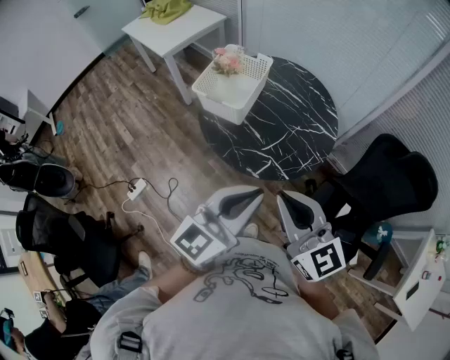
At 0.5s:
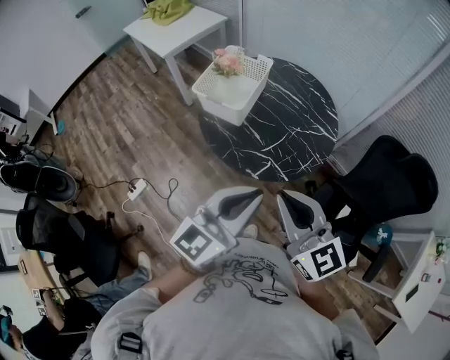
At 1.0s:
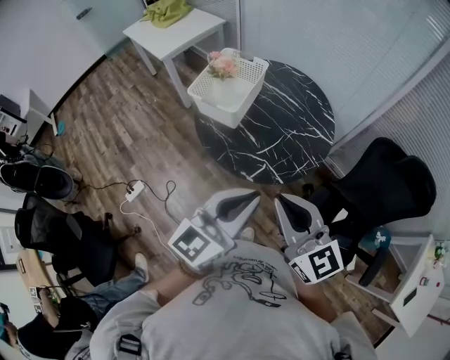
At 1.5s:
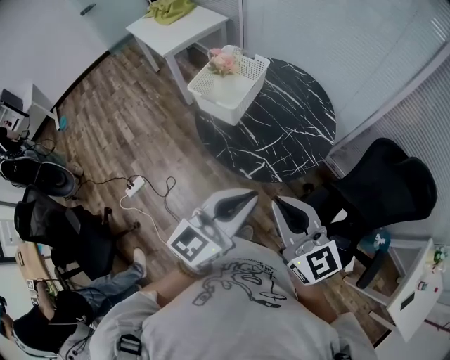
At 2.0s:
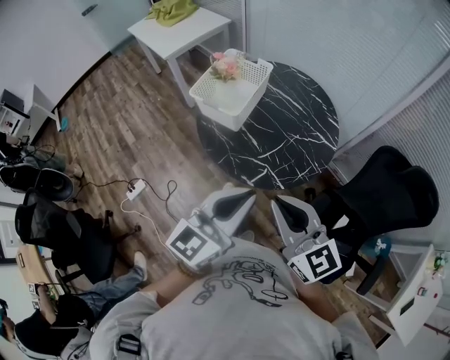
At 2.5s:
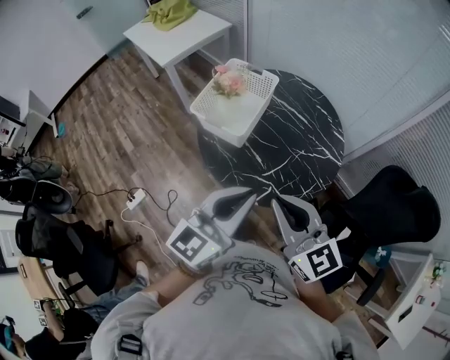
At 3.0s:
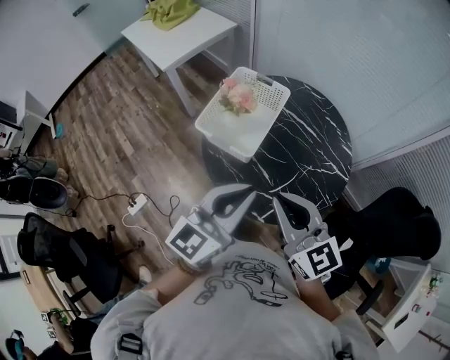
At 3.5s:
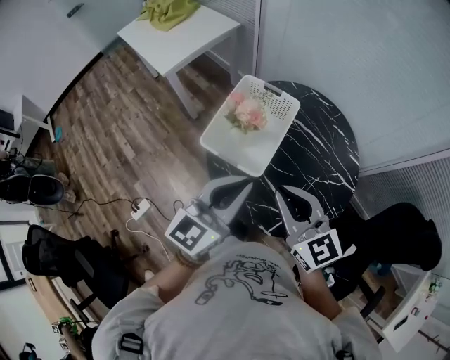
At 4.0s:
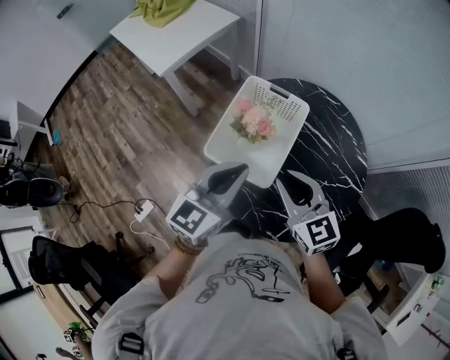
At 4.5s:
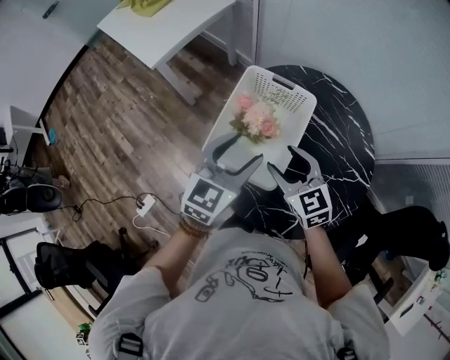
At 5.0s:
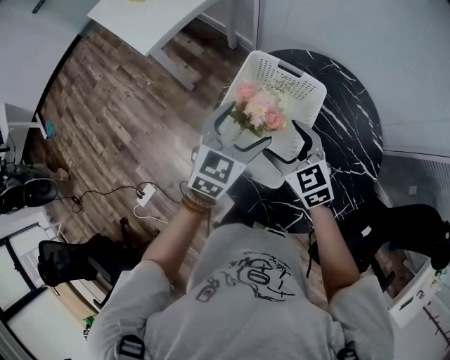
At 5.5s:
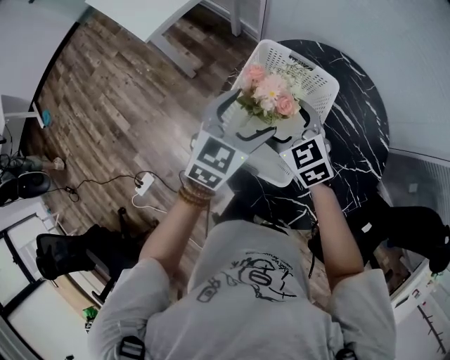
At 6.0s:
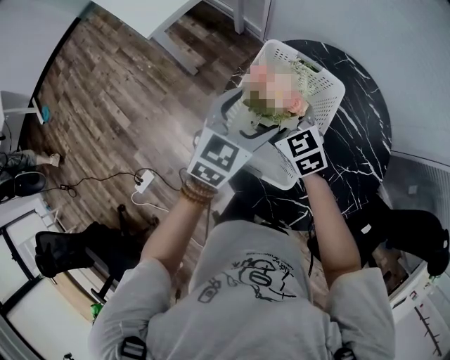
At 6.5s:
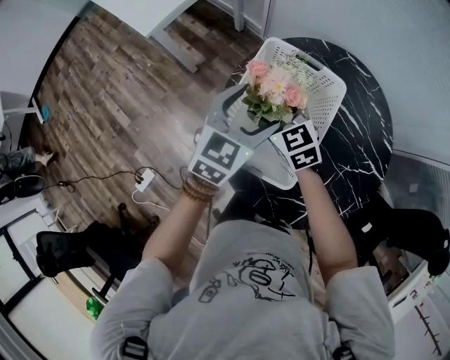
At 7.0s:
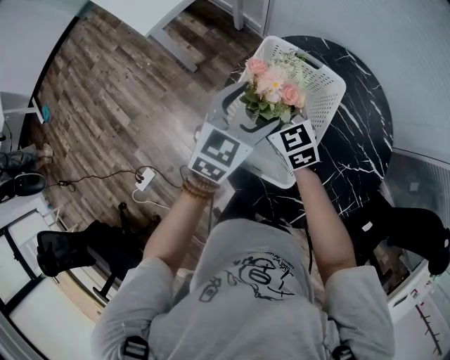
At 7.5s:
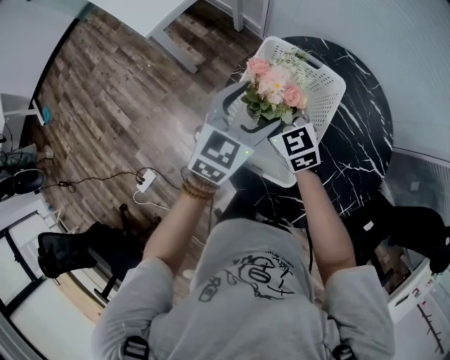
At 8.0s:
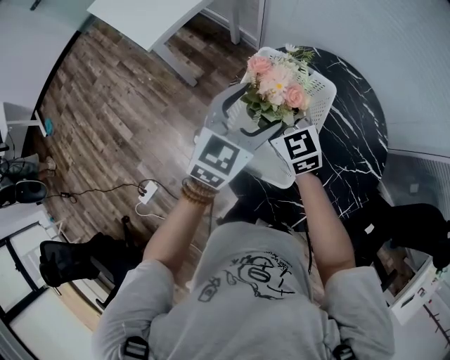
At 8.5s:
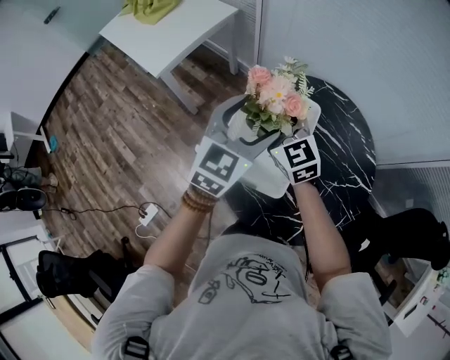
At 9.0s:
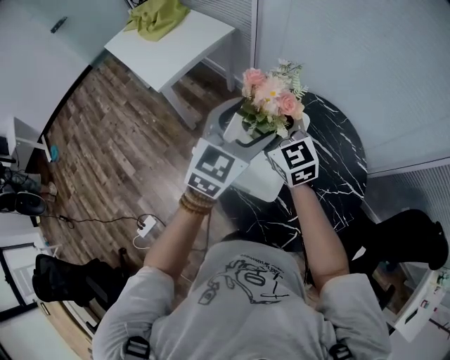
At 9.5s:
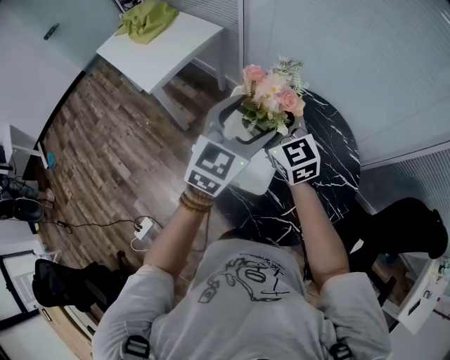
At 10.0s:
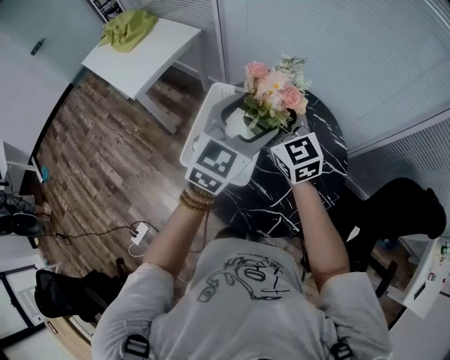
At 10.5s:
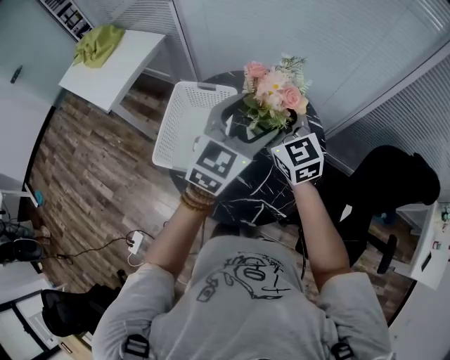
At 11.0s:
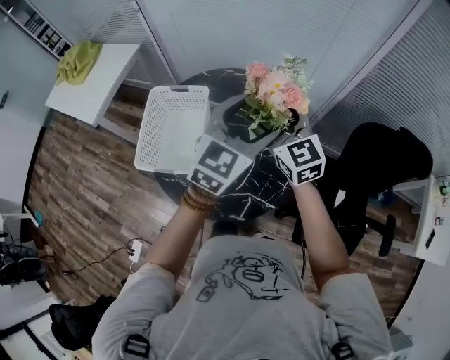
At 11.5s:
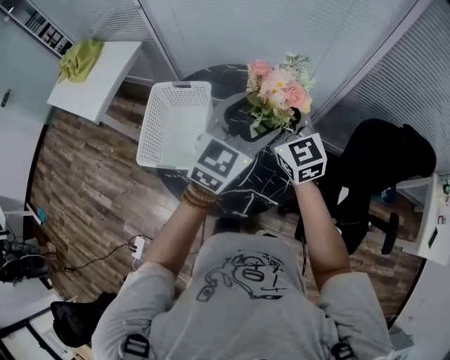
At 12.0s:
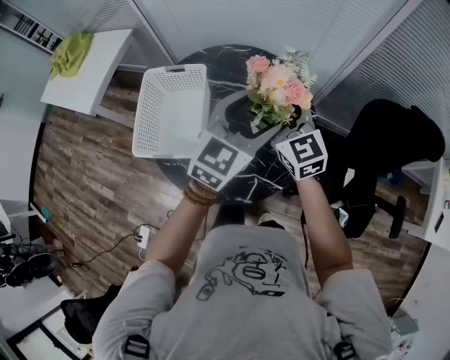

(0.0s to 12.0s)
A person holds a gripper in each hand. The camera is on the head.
0.0s - 2.0s: There are only small adjustments of the grippers.
2.0s - 4.0s: Both grippers are carried forward and to the left, approximately 40 cm.
4.0s - 6.0s: The right gripper moves forward, downward and to the left, some 30 cm, and opens its fingers. Meanwhile the left gripper heads forward and downward, covering roughly 25 cm, and opens up.
6.0s - 8.0s: The two grippers go some 5 cm upward.
8.0s - 10.0s: The grippers both shift upward, to the right and backward by some 25 cm.
10.0s - 12.0s: The grippers both shift to the right by some 25 cm.

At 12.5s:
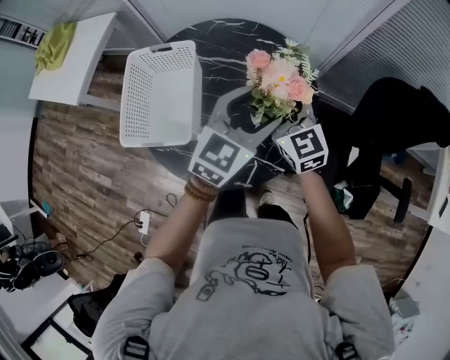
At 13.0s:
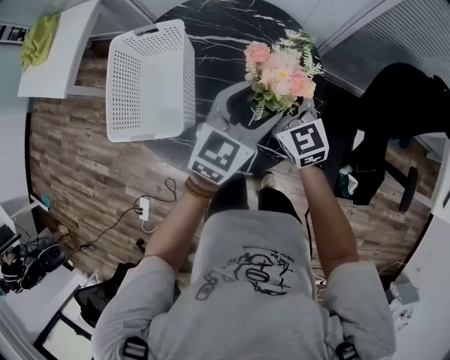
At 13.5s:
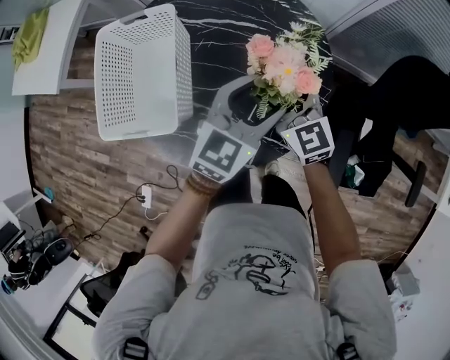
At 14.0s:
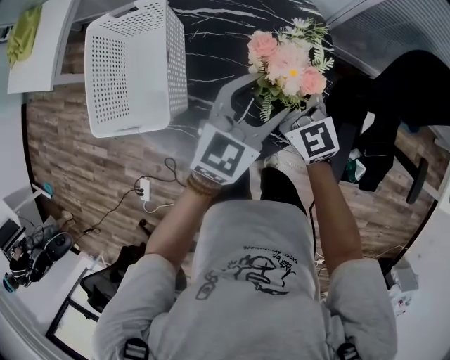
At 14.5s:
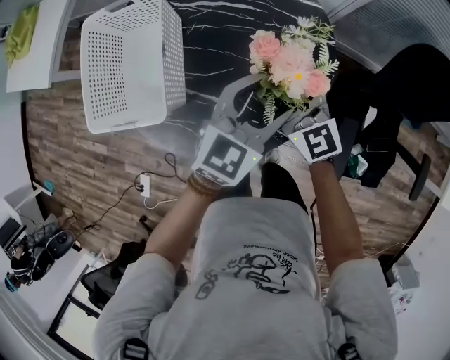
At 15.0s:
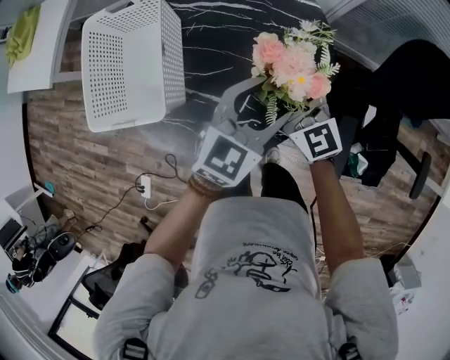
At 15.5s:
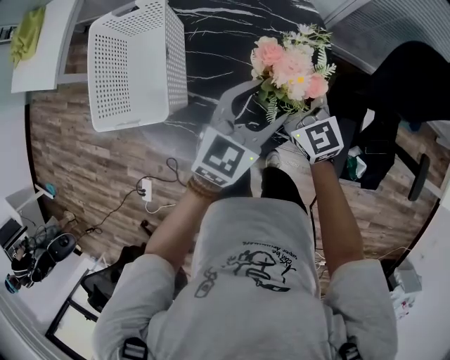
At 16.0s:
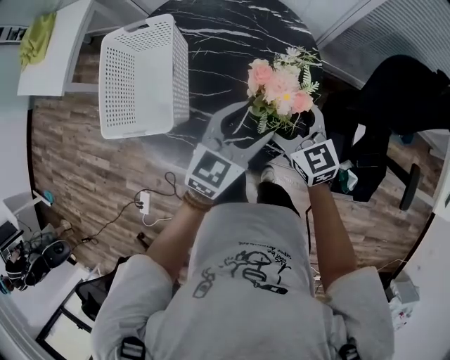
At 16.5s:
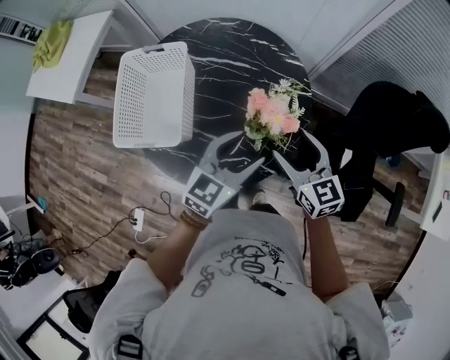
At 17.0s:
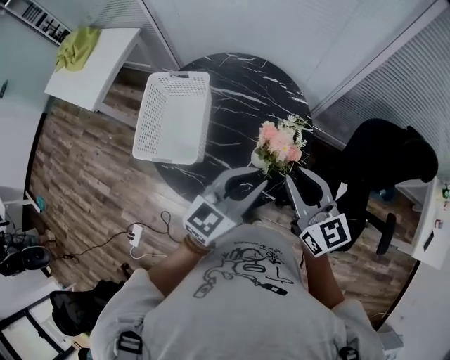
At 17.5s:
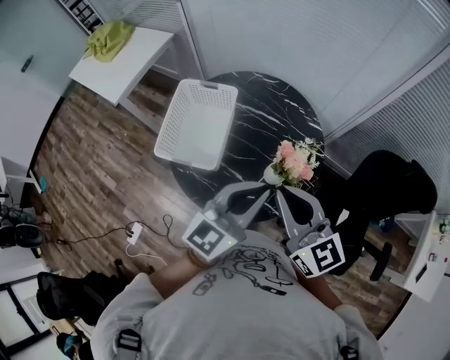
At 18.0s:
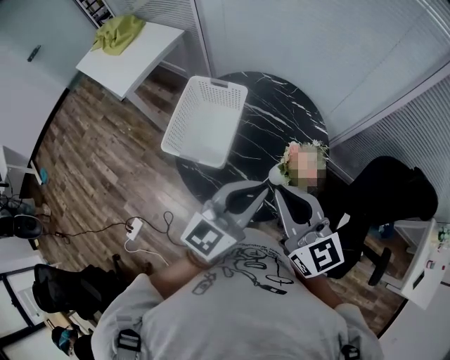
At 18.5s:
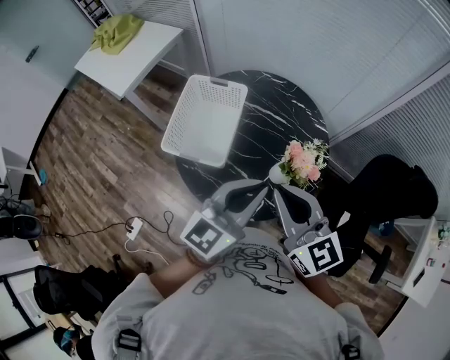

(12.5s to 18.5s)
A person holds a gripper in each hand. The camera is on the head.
12.5s - 14.5s: The two grippers go roughly 15 cm downward.
14.5s - 16.5s: The right gripper goes about 15 cm upward, to the right and backward. Meanwhile the left gripper is displaced upward and backward by roughly 10 cm.
16.5s - 18.5s: The grippers both shift upward and to the left by roughly 25 cm. The left gripper changes its angle by some 20 degrees, and closes up; the right gripper swivels about 20 degrees, and closes up.

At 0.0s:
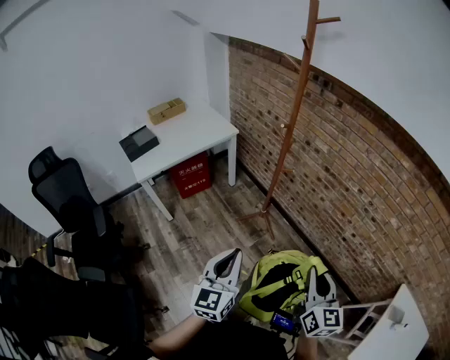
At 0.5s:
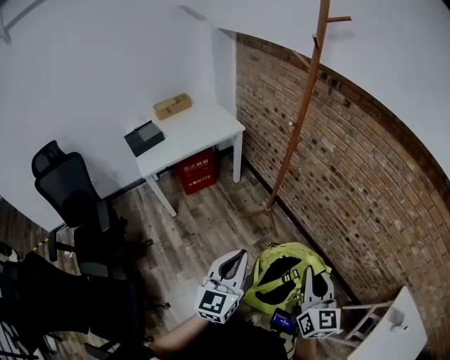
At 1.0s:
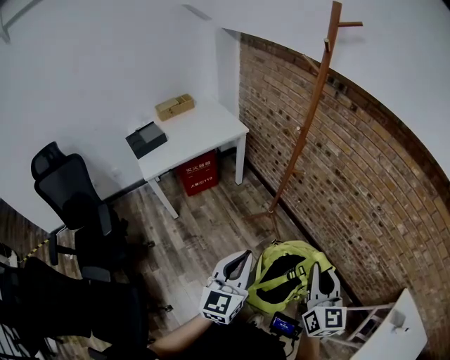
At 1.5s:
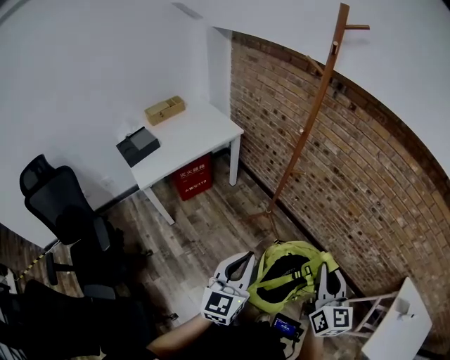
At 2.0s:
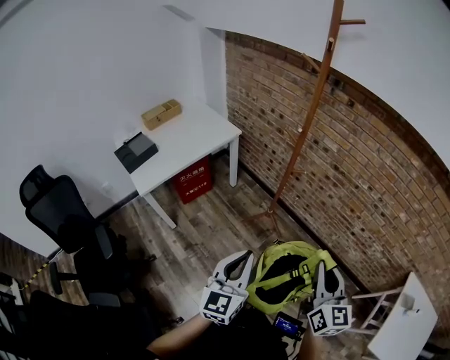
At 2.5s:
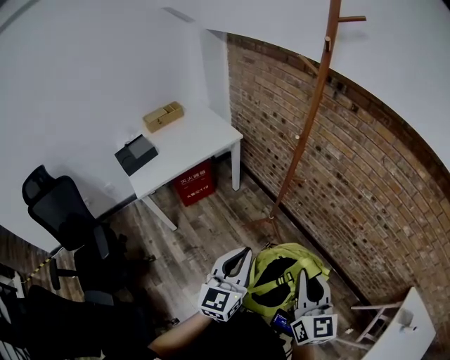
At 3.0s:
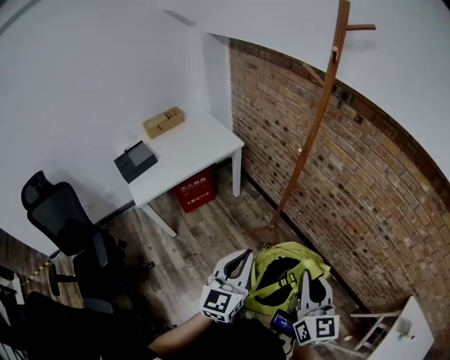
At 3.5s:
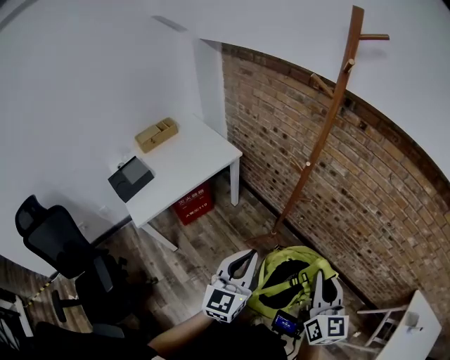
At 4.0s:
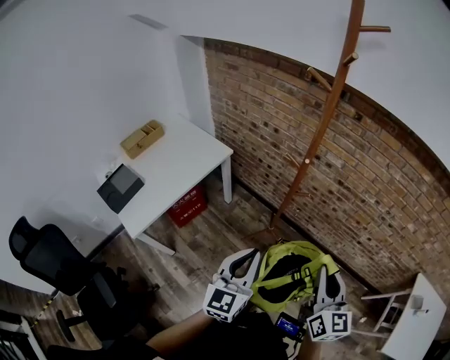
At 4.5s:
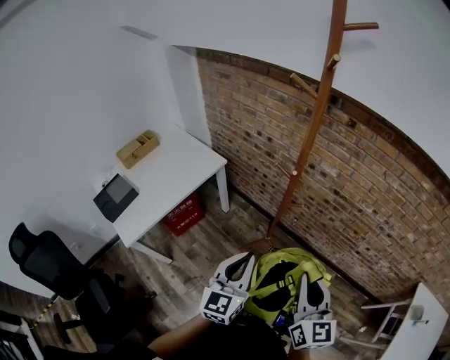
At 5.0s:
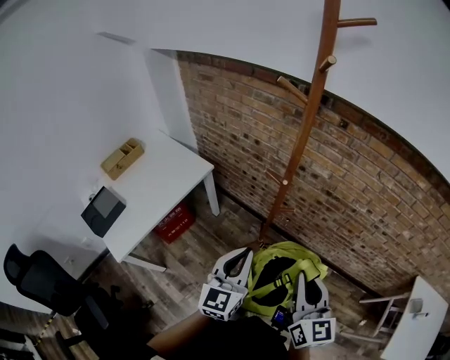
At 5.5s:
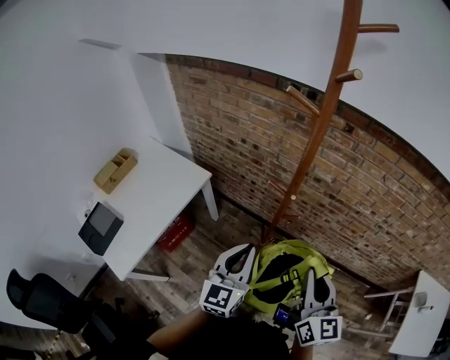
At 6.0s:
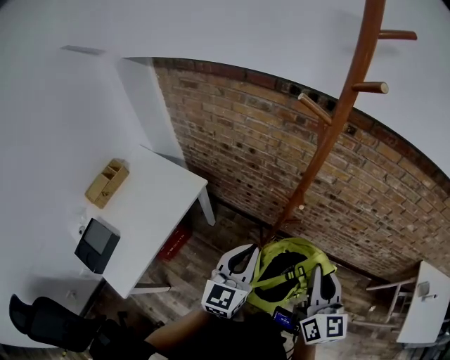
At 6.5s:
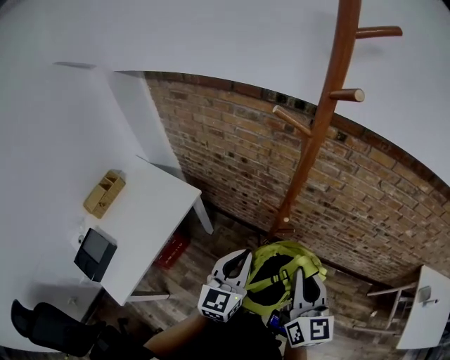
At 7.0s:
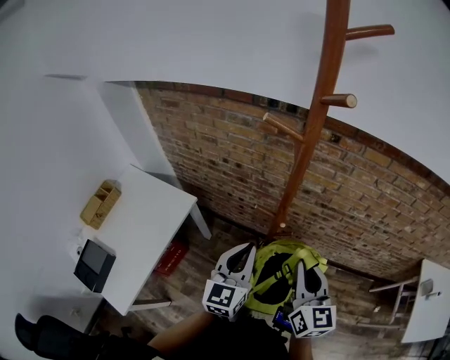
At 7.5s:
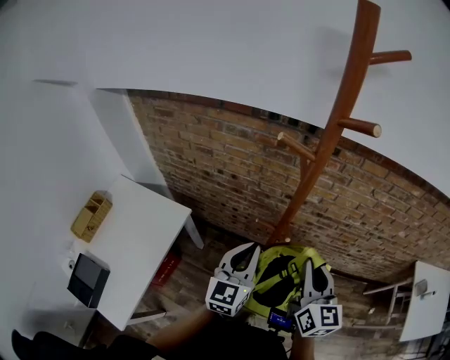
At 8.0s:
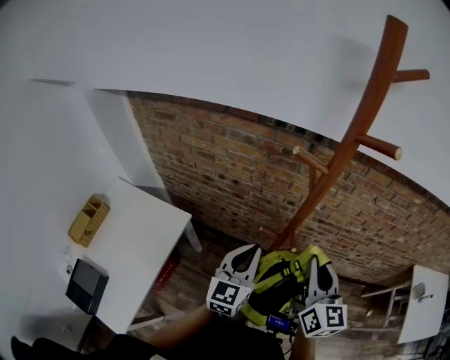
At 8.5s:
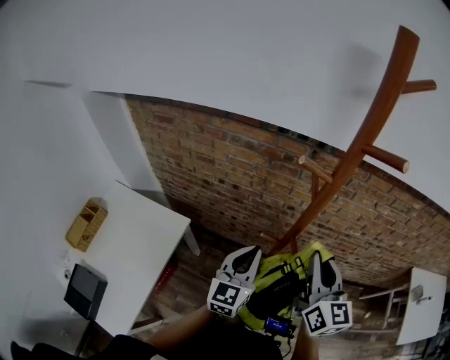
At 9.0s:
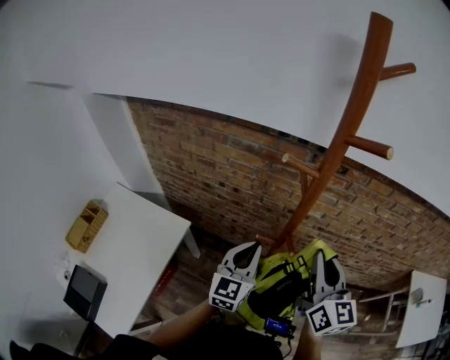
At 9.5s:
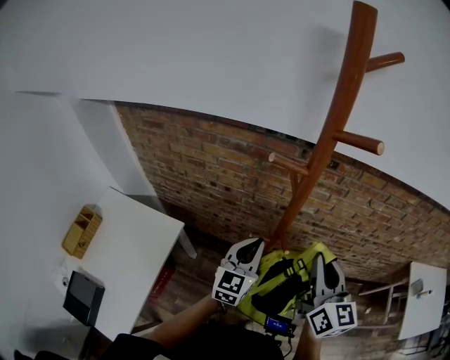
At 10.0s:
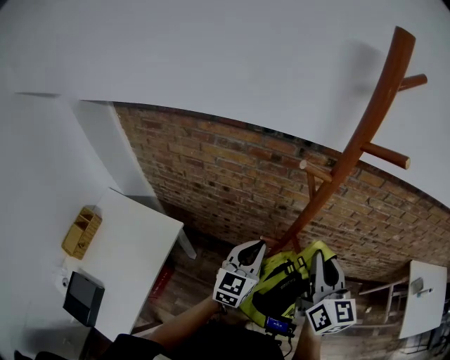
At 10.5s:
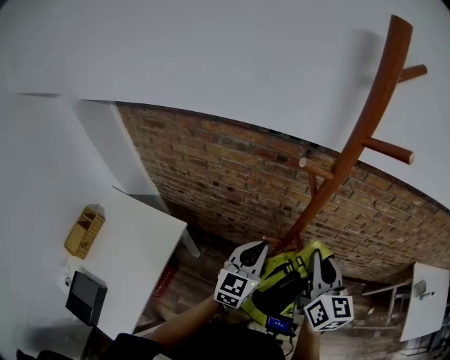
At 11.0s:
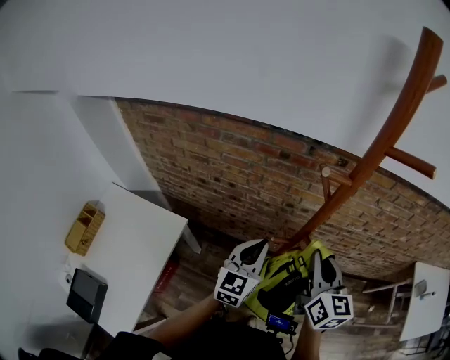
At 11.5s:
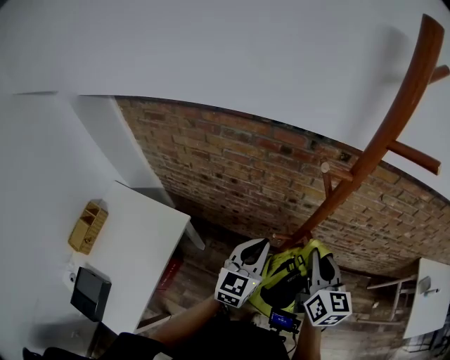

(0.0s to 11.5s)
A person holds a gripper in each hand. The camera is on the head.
0.0s - 2.0s: The grippers both shift to the left by about 10 cm.
2.0s - 4.0s: The left gripper heads forward, covering about 15 cm. Meanwhile the right gripper is displaced forward and to the left by about 15 cm.
4.0s - 6.0s: The left gripper goes approximately 20 cm forward; the right gripper moves forward and to the left, approximately 15 cm.
6.0s - 7.5s: The two grippers go approximately 10 cm forward.
7.5s - 9.5s: The right gripper heads upward, covering about 5 cm, while the left gripper travels forward by some 10 cm.
9.5s - 11.5s: The right gripper shifts roughly 10 cm downward.
